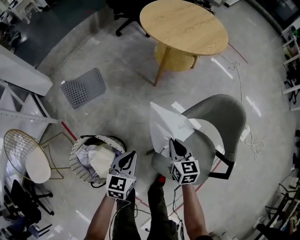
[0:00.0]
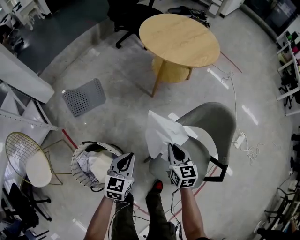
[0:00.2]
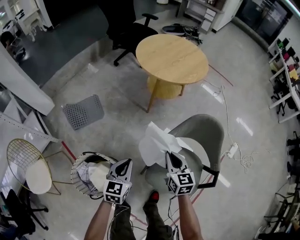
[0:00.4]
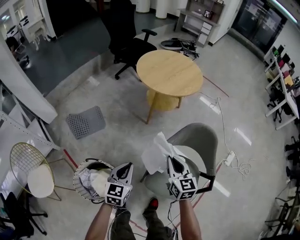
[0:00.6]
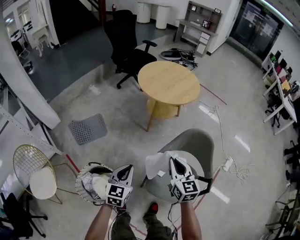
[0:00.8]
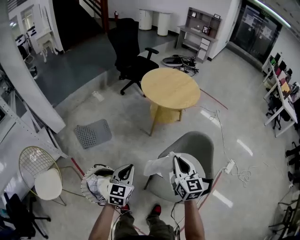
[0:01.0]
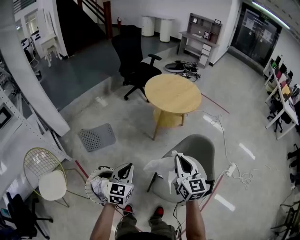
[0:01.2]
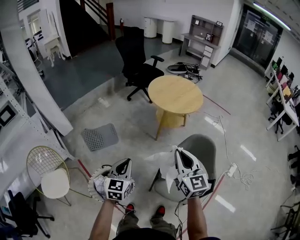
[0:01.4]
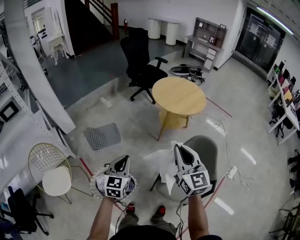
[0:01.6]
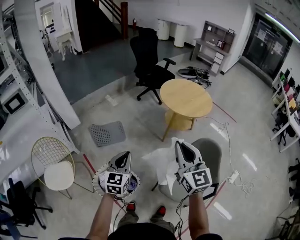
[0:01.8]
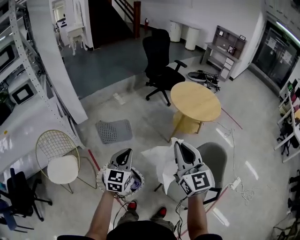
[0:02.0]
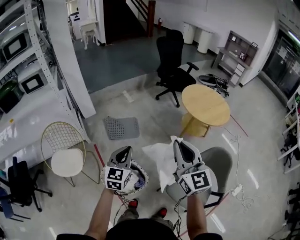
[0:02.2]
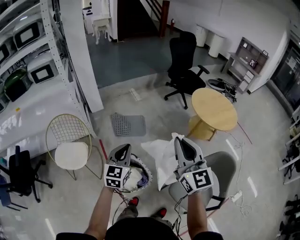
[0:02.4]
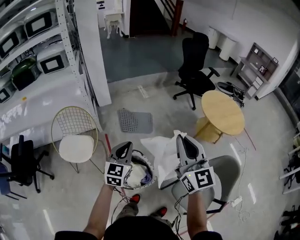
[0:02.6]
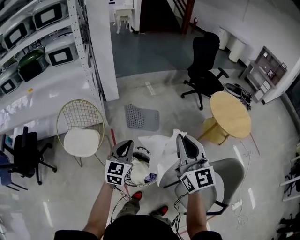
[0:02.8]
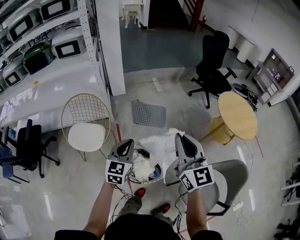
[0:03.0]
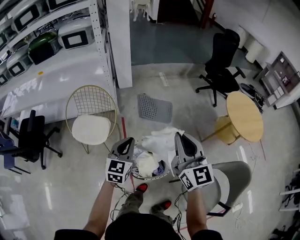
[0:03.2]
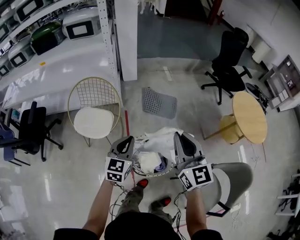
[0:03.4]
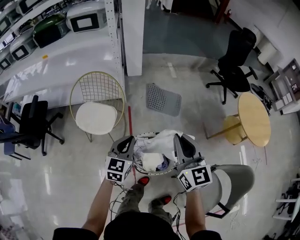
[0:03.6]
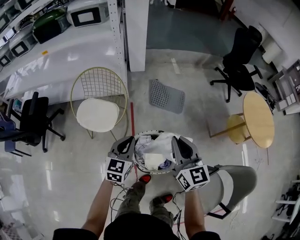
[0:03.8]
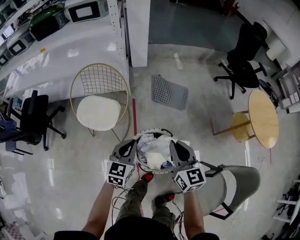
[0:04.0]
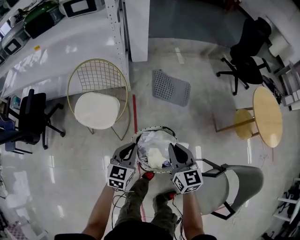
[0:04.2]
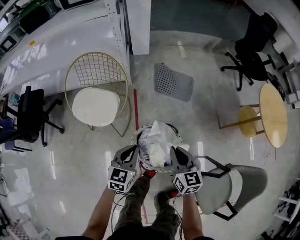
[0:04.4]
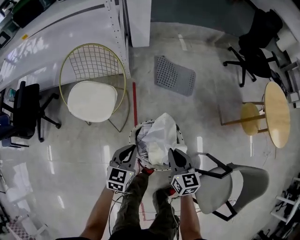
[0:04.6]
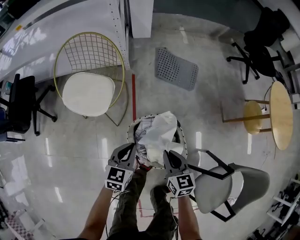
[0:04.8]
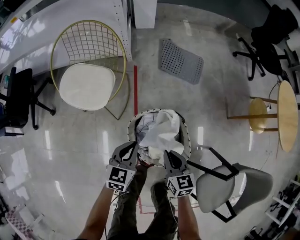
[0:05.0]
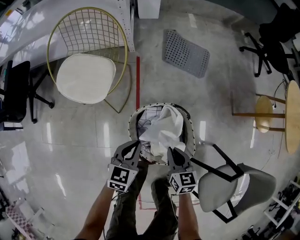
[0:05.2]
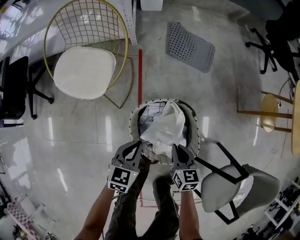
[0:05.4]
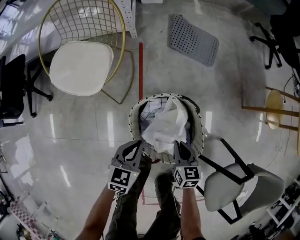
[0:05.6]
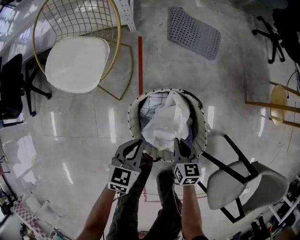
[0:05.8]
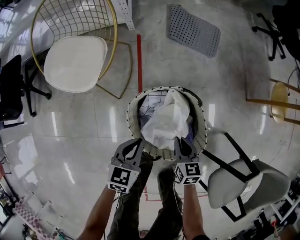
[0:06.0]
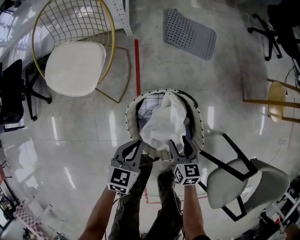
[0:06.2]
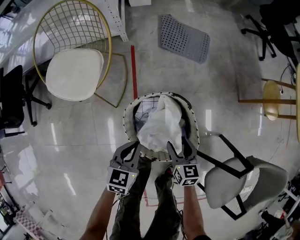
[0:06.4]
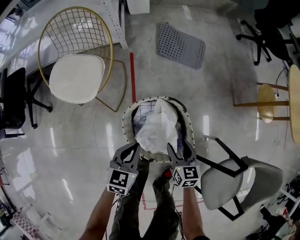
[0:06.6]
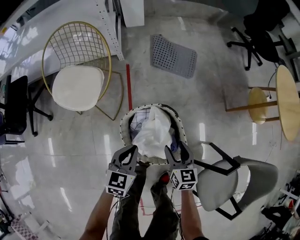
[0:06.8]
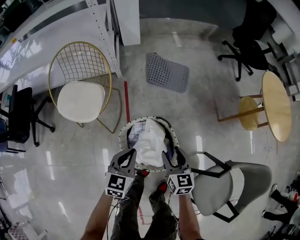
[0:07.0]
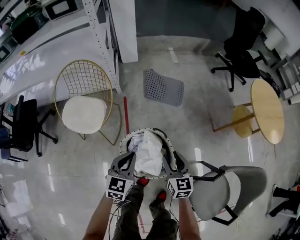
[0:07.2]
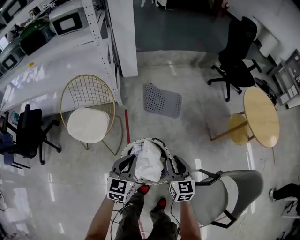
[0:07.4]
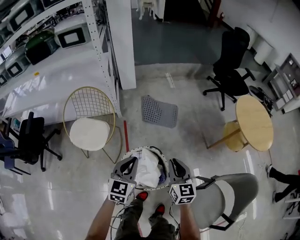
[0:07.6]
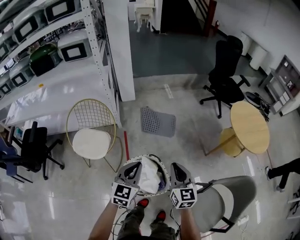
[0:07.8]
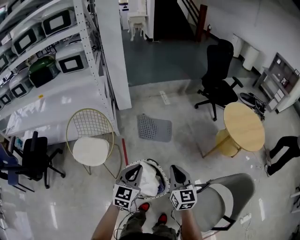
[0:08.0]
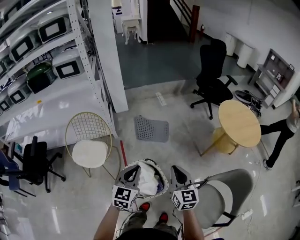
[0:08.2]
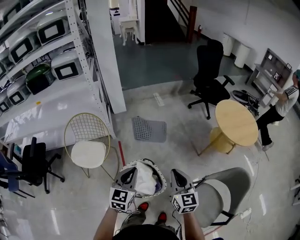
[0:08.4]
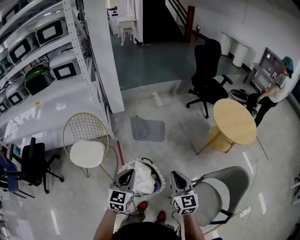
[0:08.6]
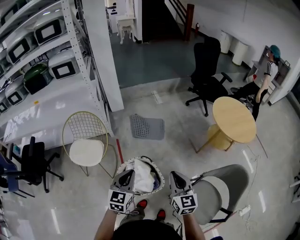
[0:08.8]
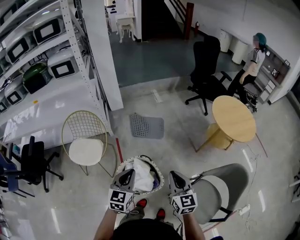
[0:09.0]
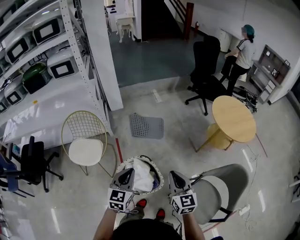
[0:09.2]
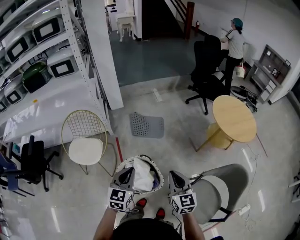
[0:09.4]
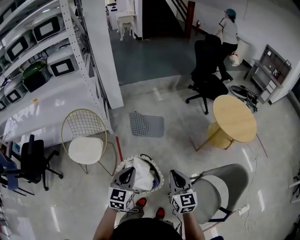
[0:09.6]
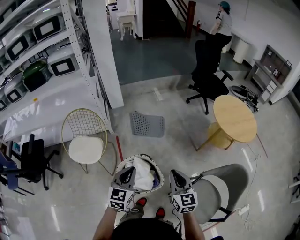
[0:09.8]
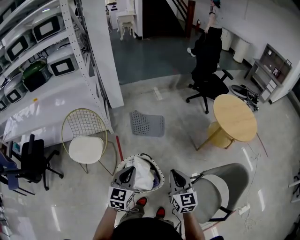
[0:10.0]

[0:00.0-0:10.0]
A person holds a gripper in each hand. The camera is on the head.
0:00.0 to 0:01.4: The two grippers go roughly 35 cm upward. The right gripper tips its fingers upward by roughly 30 degrees. Meanwhile the left gripper rotates some 20 degrees.
0:01.4 to 0:02.8: The right gripper shifts by some 30 cm, and swivels some 30 degrees. The left gripper changes place by approximately 30 cm, and swivels some 30 degrees.
0:02.8 to 0:04.2: The grippers both shift downward and to the left by about 30 cm. The right gripper swivels some 30 degrees.
0:04.2 to 0:05.8: The grippers both shift downward by some 35 cm. The right gripper changes its angle by roughly 30 degrees.
0:05.8 to 0:07.2: Both grippers travel together upward, some 25 cm. The right gripper rotates some 20 degrees, and opens up.
0:07.2 to 0:08.6: The left gripper goes approximately 20 cm upward. The right gripper goes some 30 cm upward and to the right, and closes.
0:08.6 to 0:10.0: There are only small adjustments of the grippers.

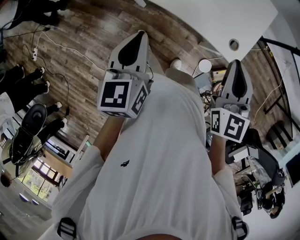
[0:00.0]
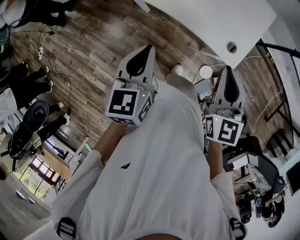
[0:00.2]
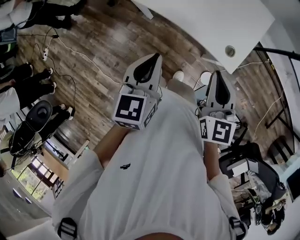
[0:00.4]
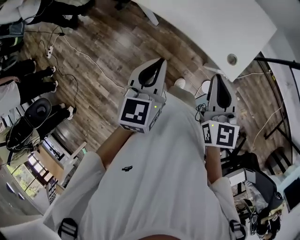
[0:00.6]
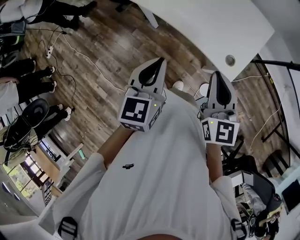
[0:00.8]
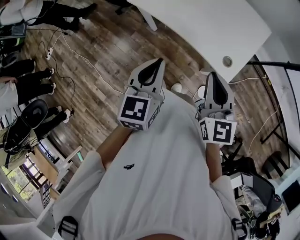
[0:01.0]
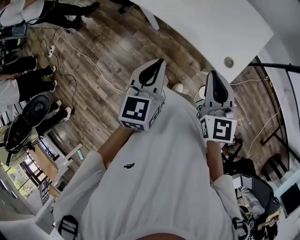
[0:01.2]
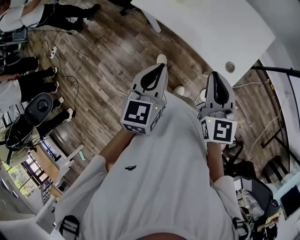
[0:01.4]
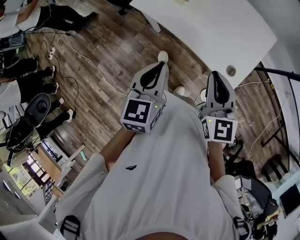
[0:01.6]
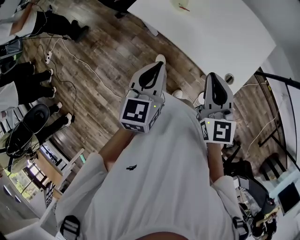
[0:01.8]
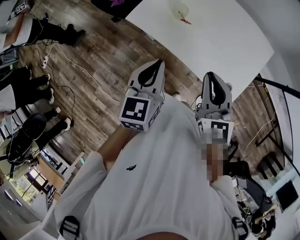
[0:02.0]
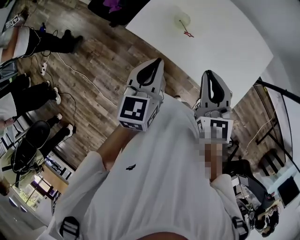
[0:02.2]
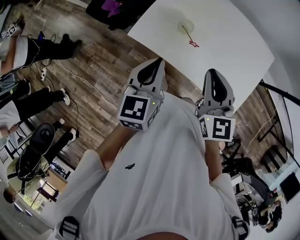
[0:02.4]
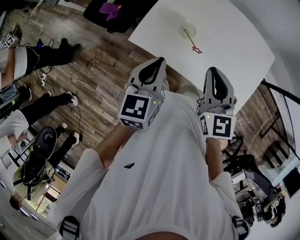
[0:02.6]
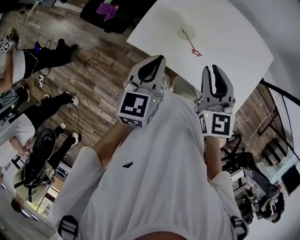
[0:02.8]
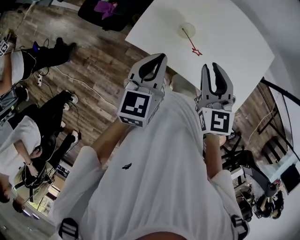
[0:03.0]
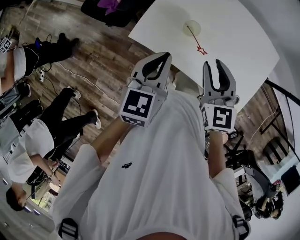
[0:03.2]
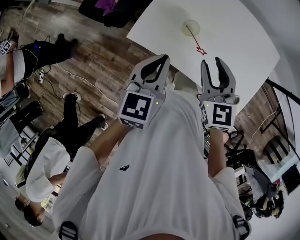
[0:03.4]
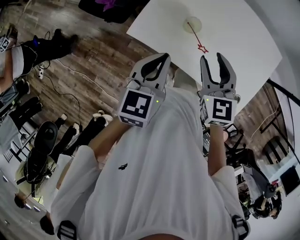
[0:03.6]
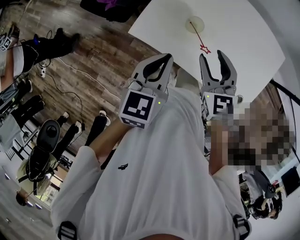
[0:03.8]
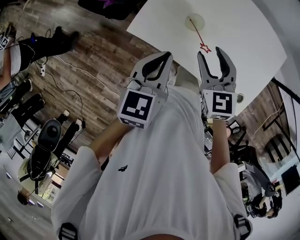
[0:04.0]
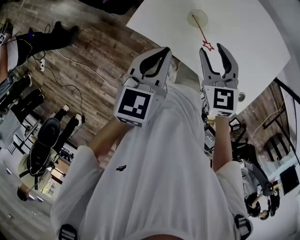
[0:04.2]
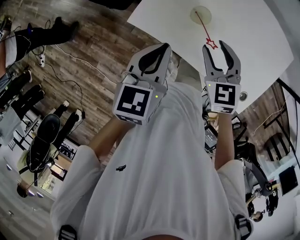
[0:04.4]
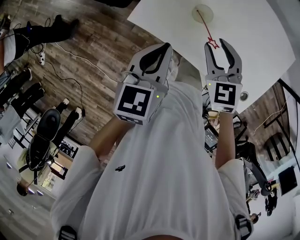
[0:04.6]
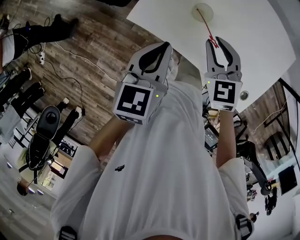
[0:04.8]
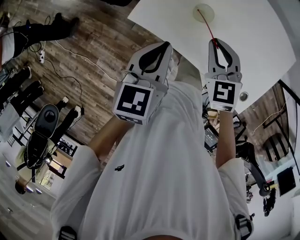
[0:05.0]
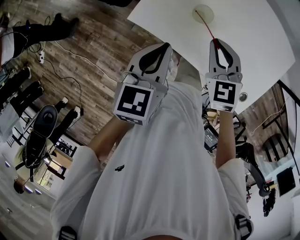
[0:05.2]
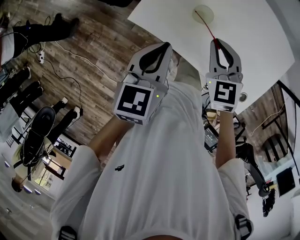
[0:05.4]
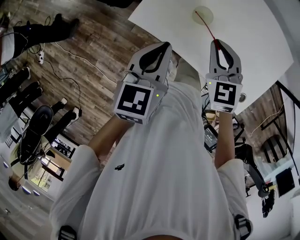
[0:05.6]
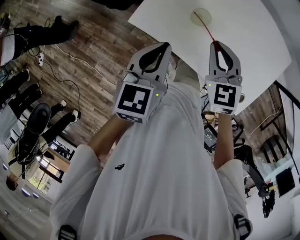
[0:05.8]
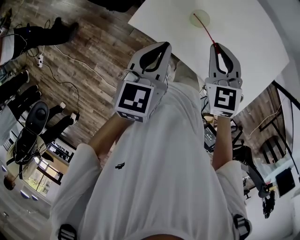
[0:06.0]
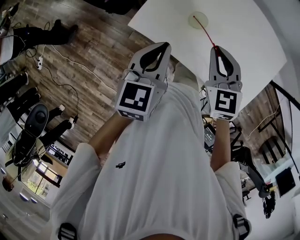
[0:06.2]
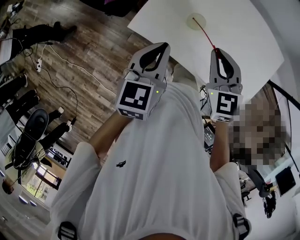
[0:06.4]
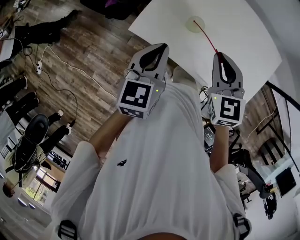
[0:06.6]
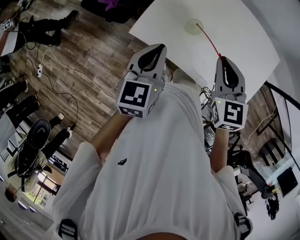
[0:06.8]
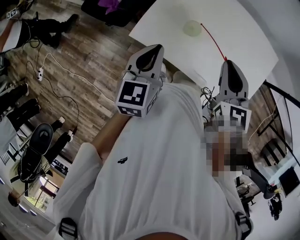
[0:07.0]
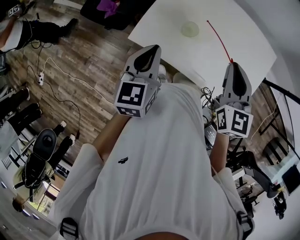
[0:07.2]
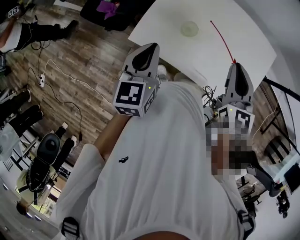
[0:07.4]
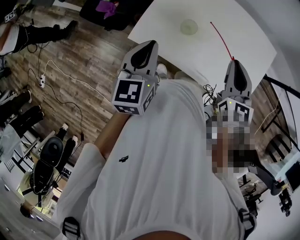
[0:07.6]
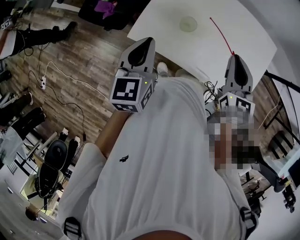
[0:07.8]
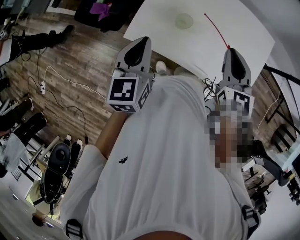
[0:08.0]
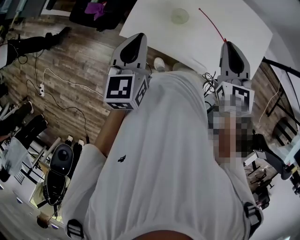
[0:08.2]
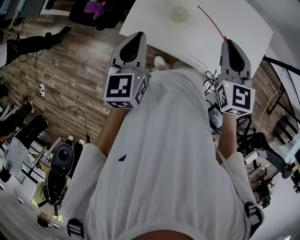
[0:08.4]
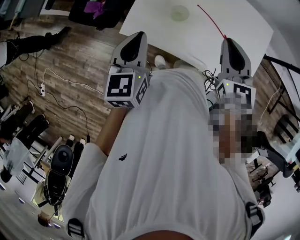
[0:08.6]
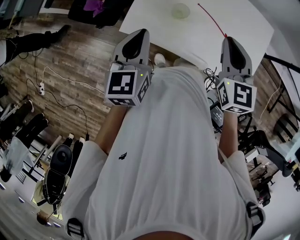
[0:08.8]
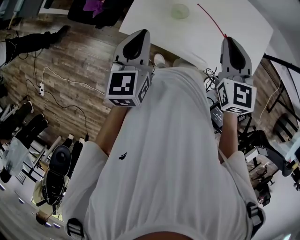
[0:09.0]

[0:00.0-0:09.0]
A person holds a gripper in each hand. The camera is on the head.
0:01.6 to 0:03.0: Both grippers travel together forward and to the left, approximately 30 cm.
0:03.0 to 0:04.4: The right gripper moves downward, roughly 10 cm, rotates some 20 degrees, and opens up.
0:04.4 to 0:06.0: The right gripper closes.
0:06.0 to 0:07.6: The right gripper heads to the right and upward, covering approximately 15 cm, and rotates about 30 degrees.
0:07.6 to 0:09.0: The grippers make only small movements.

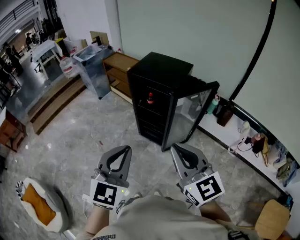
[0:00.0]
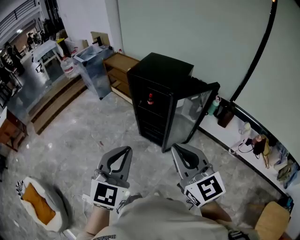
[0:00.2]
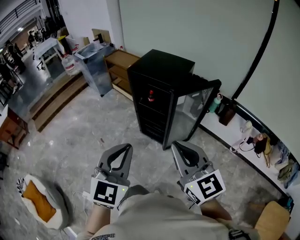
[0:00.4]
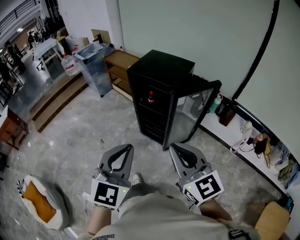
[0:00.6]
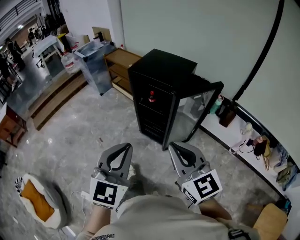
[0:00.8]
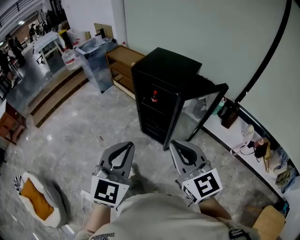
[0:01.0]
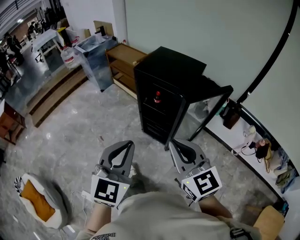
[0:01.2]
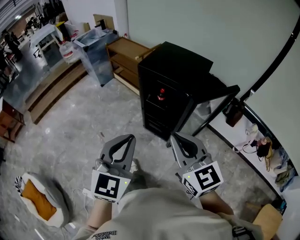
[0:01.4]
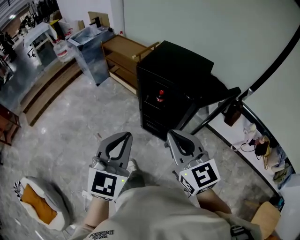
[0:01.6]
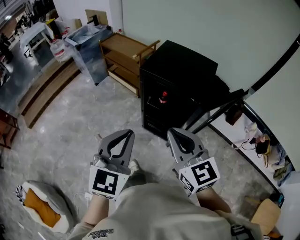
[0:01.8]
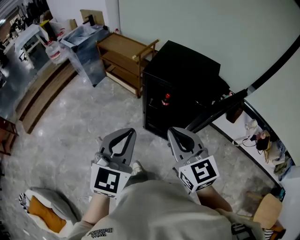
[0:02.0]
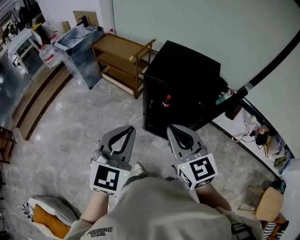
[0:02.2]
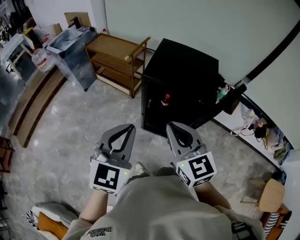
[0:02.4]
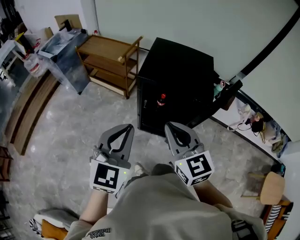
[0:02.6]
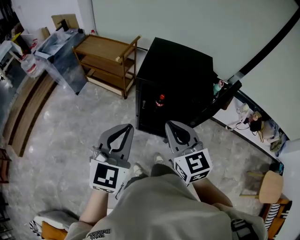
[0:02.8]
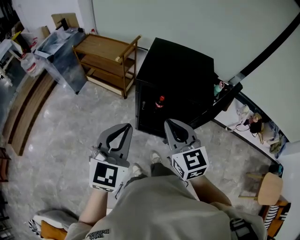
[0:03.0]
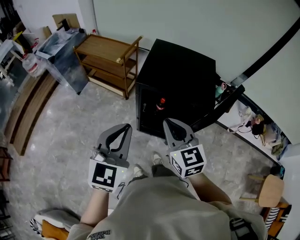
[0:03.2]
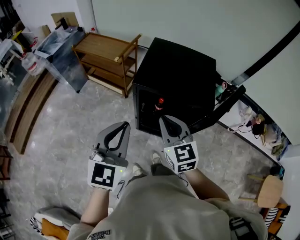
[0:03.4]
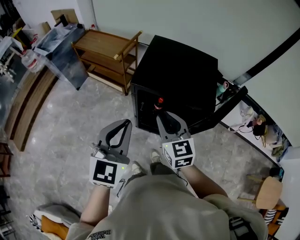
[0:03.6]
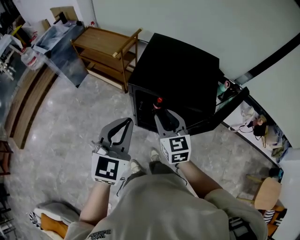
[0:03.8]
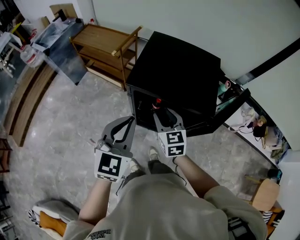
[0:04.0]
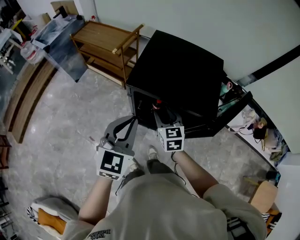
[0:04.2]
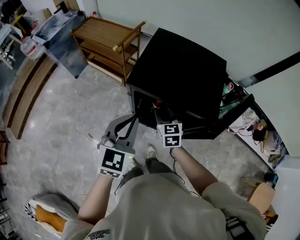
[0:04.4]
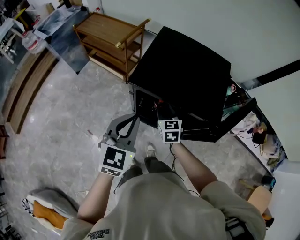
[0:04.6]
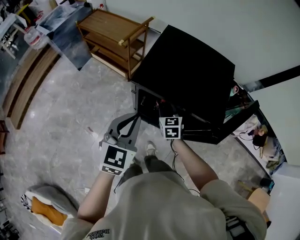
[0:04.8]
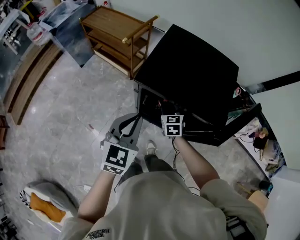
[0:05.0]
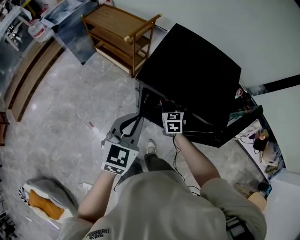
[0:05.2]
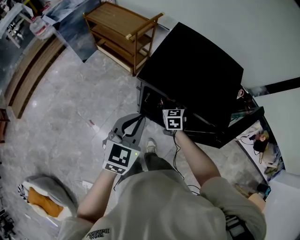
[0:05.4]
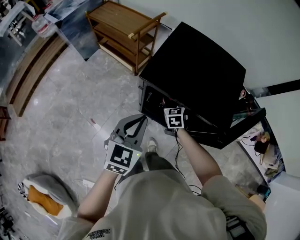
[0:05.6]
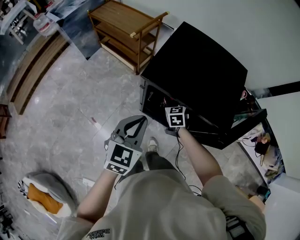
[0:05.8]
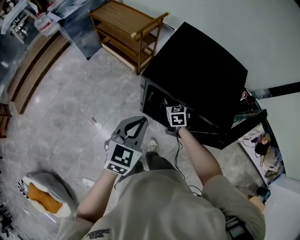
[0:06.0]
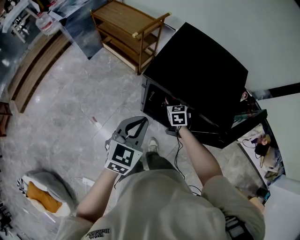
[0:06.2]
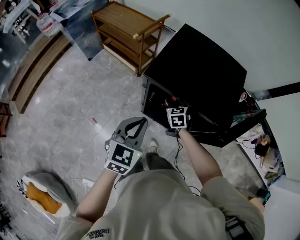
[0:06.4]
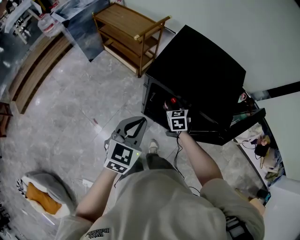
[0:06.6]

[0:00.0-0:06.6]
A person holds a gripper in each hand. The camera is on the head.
0:00.0 to 0:01.6: The grippers both shift forward and to the left by some 20 cm.
0:01.6 to 0:03.2: The two grippers go approximately 25 cm forward and to the left. The right gripper swivels about 20 degrees.
0:03.2 to 0:05.0: The right gripper shifts approximately 35 cm downward and forward, swivels about 20 degrees, and opens its fingers, while the left gripper goes approximately 15 cm downward and forward.
0:05.0 to 0:06.6: The grippers move only a little.
